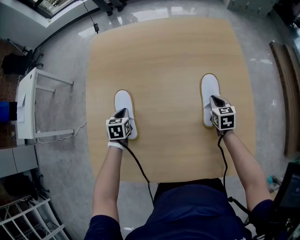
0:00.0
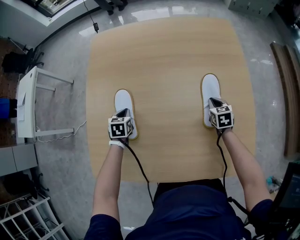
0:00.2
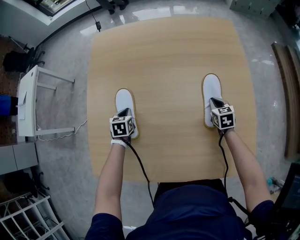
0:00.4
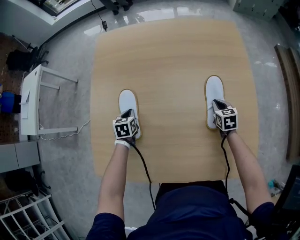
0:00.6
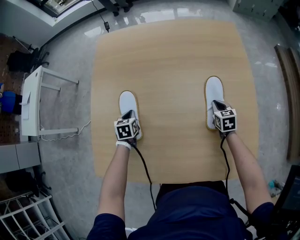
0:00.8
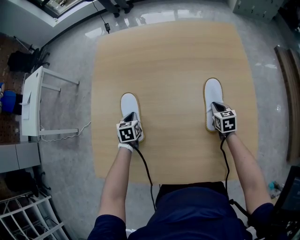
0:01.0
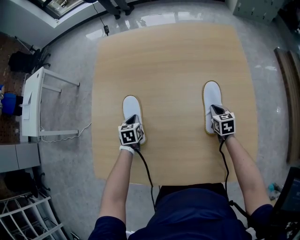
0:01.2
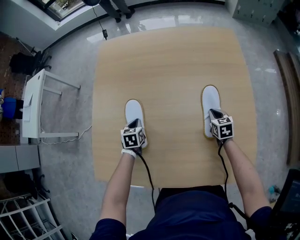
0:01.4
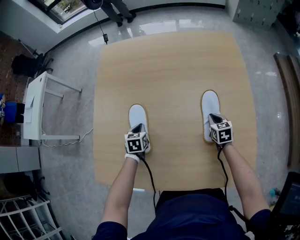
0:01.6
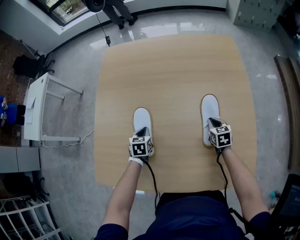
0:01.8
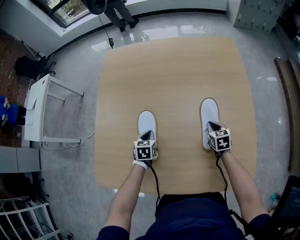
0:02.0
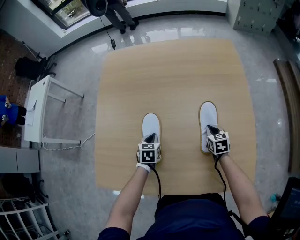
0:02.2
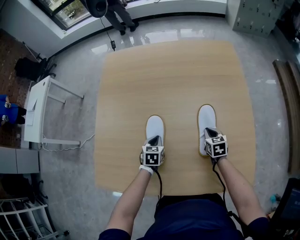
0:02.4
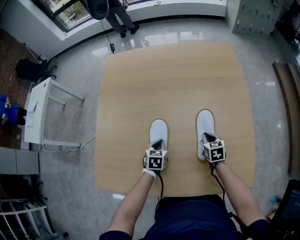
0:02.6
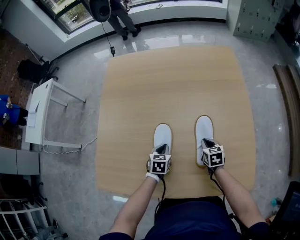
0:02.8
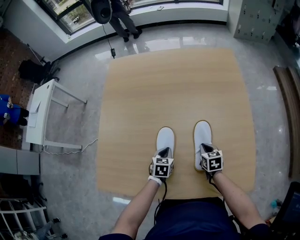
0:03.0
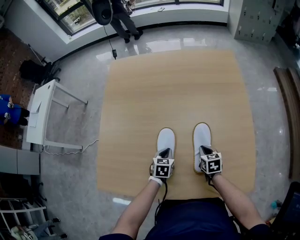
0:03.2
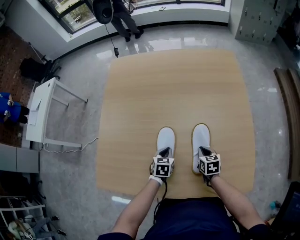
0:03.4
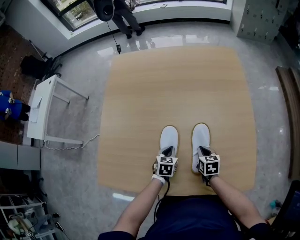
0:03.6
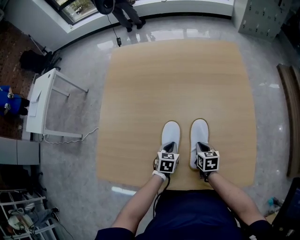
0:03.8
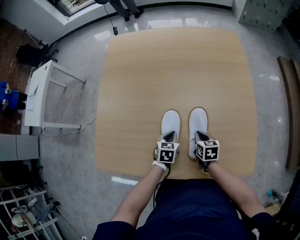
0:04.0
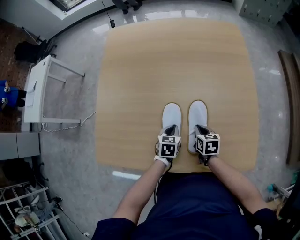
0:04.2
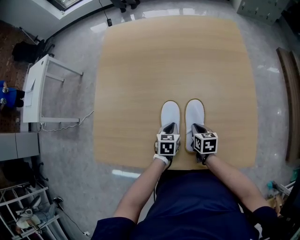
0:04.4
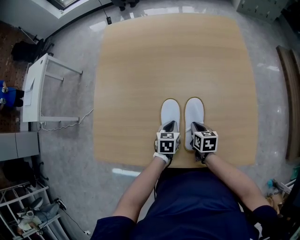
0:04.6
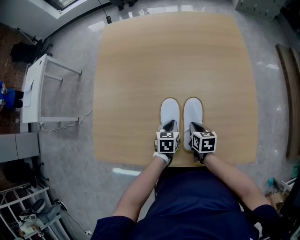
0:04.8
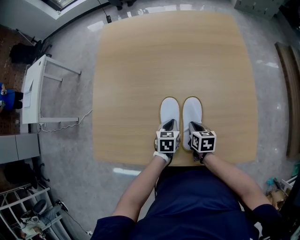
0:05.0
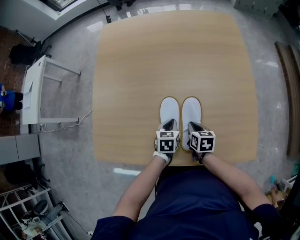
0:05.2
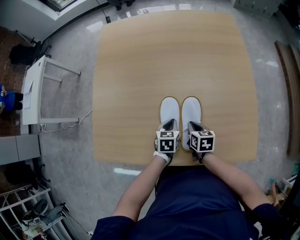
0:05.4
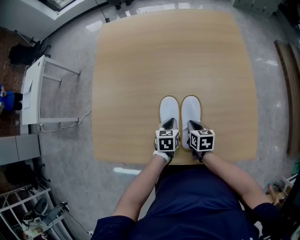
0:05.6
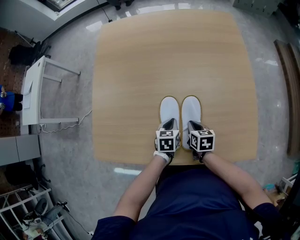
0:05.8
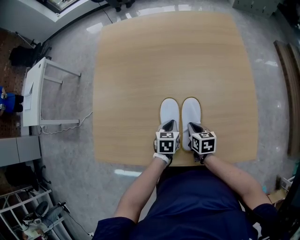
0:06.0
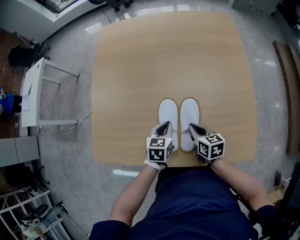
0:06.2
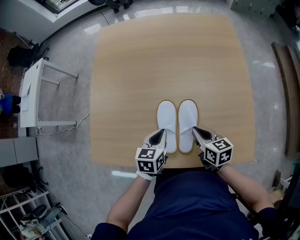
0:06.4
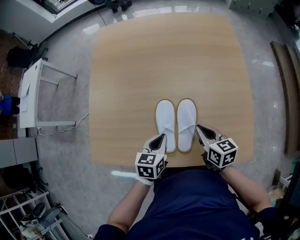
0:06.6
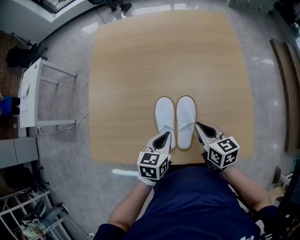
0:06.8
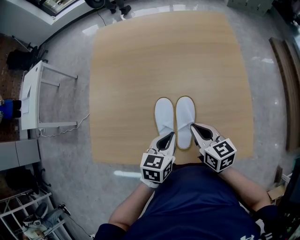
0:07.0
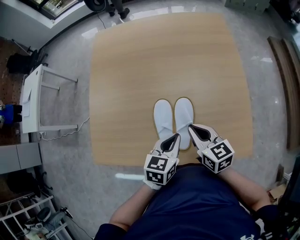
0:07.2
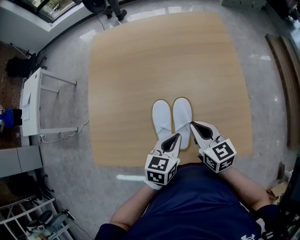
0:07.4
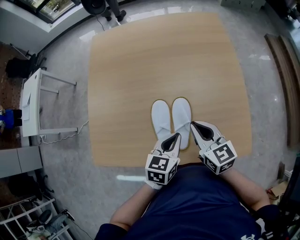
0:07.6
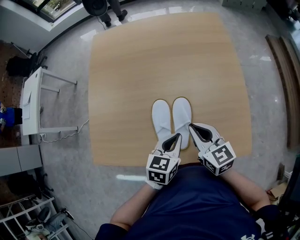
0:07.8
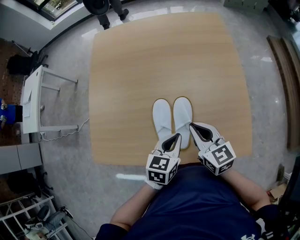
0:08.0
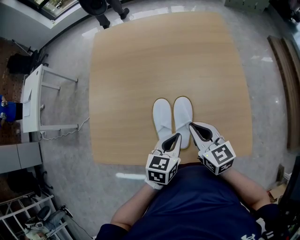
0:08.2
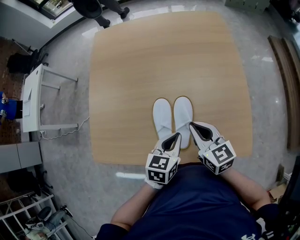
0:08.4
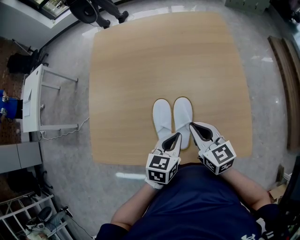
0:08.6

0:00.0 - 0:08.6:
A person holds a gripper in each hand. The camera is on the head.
0:00.0 - 0:01.4: The grippers move only a little.
0:01.4 - 0:02.8: The left gripper travels to the right and backward by about 15 cm. Meanwhile the right gripper moves backward, about 10 cm.
0:02.8 - 0:04.4: The left gripper travels backward by approximately 5 cm; the right gripper heads backward and to the left, covering some 10 cm.
0:04.4 - 0:05.8: The grippers move only a little.
0:05.8 - 0:07.2: The two grippers go approximately 15 cm upward. The right gripper turns by some 30 degrees.
0:07.2 - 0:08.6: The grippers make only small movements.

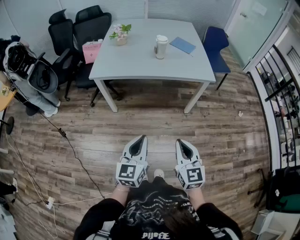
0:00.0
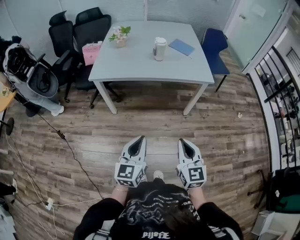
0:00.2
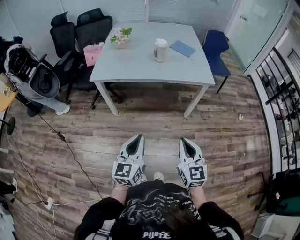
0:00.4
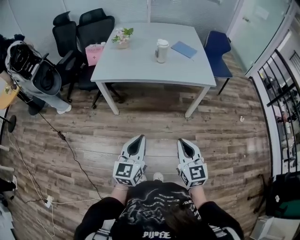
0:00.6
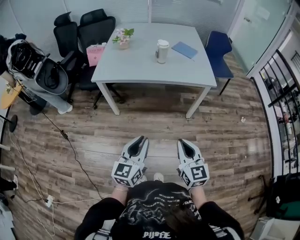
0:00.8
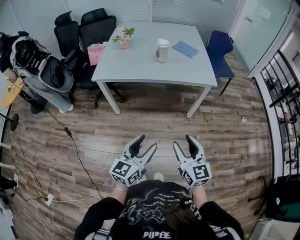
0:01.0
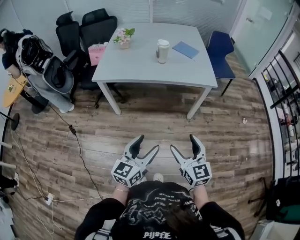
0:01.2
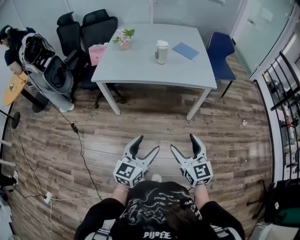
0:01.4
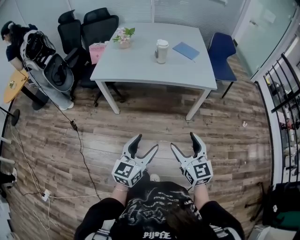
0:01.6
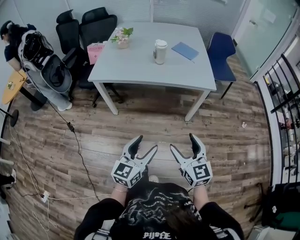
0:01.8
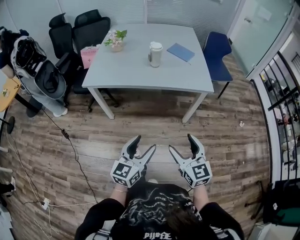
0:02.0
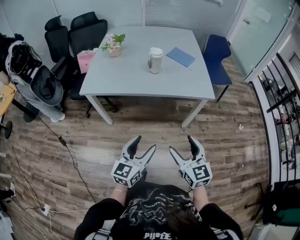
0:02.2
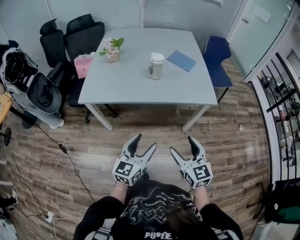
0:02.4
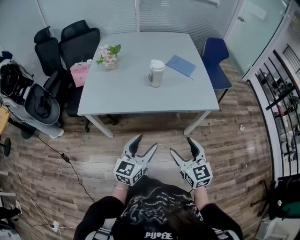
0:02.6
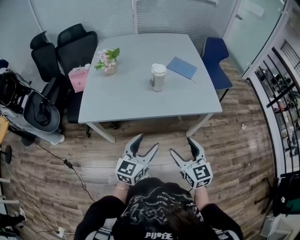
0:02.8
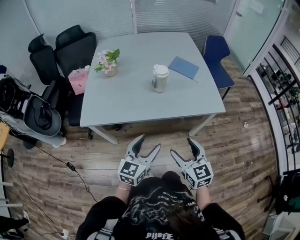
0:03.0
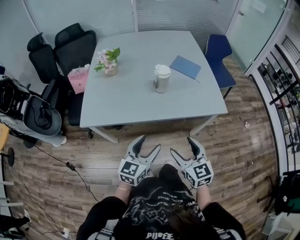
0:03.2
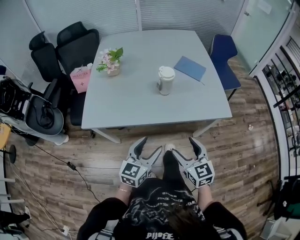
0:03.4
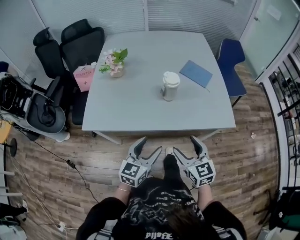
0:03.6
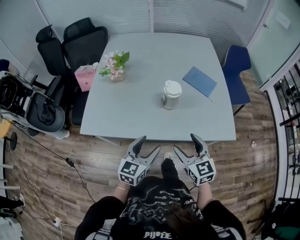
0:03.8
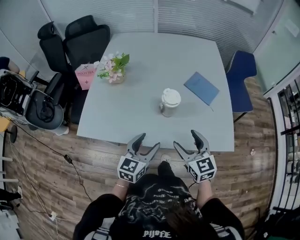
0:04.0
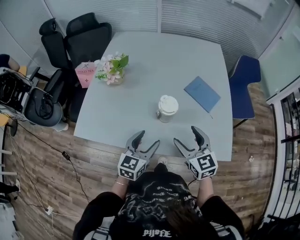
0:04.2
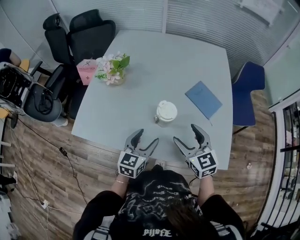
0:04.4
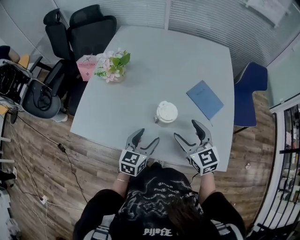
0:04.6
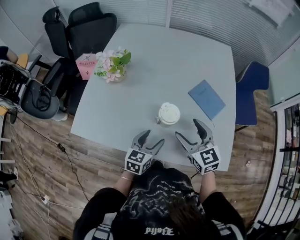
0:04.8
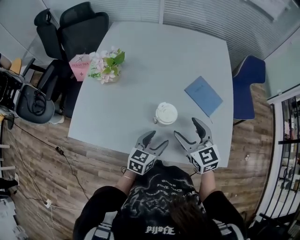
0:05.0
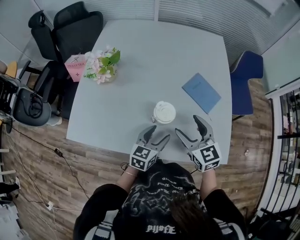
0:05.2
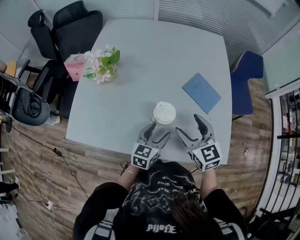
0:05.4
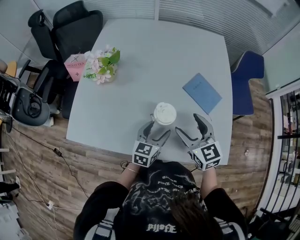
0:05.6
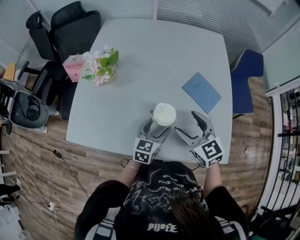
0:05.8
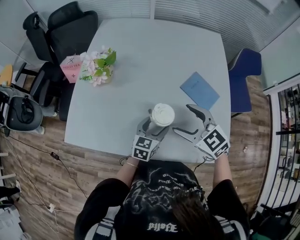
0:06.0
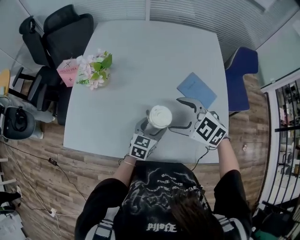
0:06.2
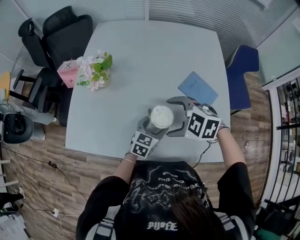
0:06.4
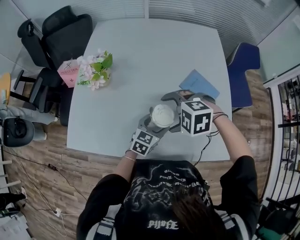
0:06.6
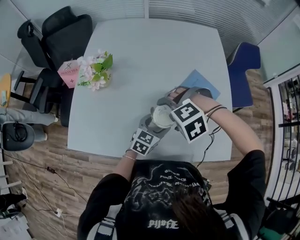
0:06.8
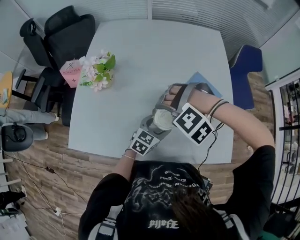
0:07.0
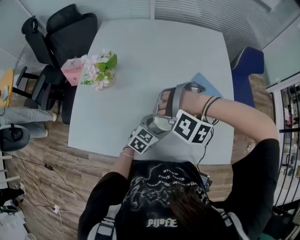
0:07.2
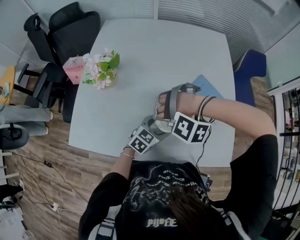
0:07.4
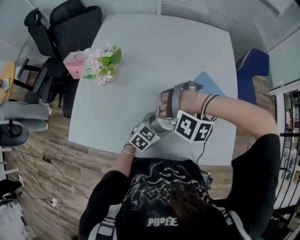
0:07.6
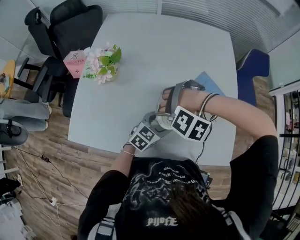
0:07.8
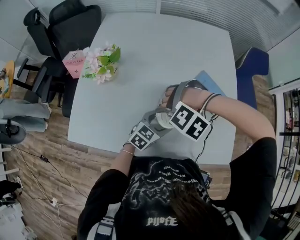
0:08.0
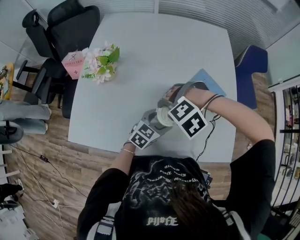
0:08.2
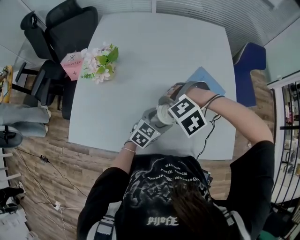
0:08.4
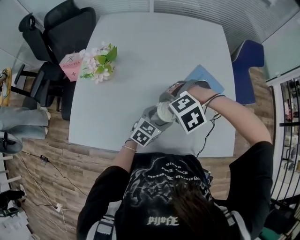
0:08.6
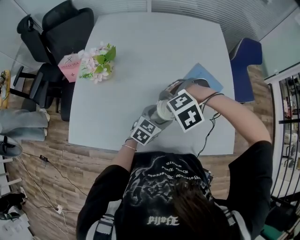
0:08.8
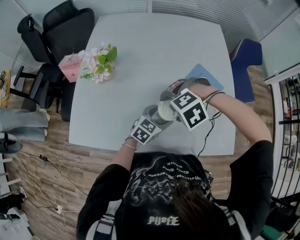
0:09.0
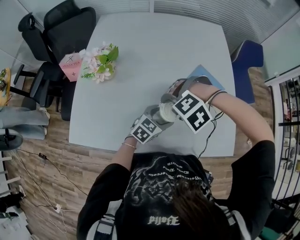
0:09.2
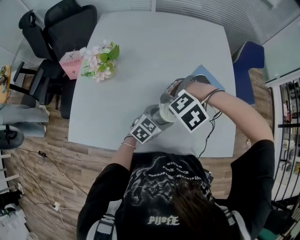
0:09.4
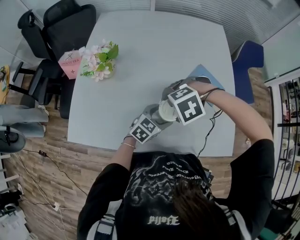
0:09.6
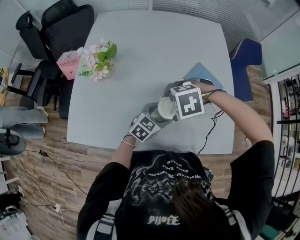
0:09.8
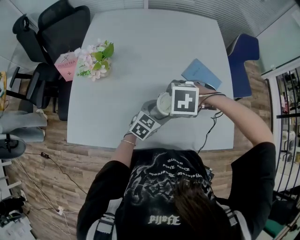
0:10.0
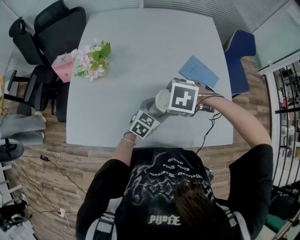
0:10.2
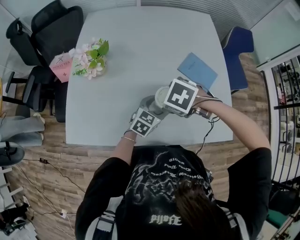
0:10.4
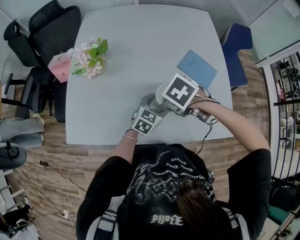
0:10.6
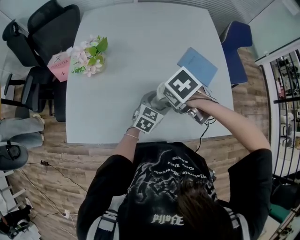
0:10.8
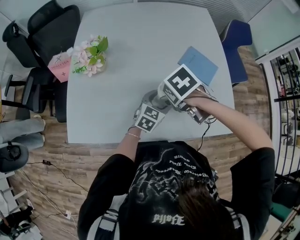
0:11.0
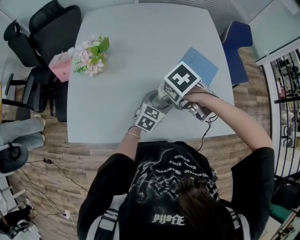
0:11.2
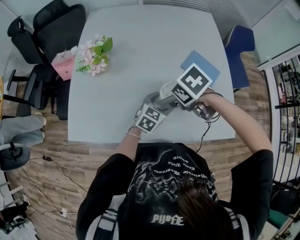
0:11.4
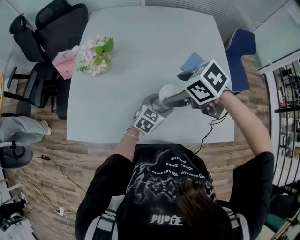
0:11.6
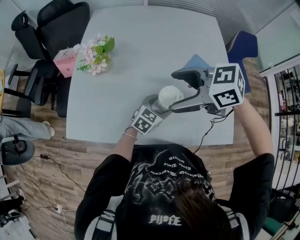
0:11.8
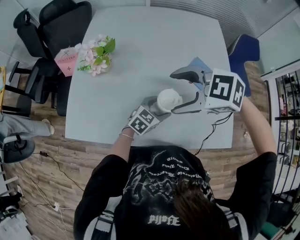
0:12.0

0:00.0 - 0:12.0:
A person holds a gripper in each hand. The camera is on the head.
0:00.0 - 0:01.6: Both grippers travel together to the right, approximately 10 cm. The right gripper opens its fingers; the left gripper opens up.
0:01.6 - 0:03.0: The left gripper moves forward, some 30 cm. Meanwhile the right gripper travels forward and to the left by some 30 cm.
0:03.0 - 0:04.4: The two grippers go approximately 35 cm forward. The right gripper rotates roughly 20 degrees. Meanwhile the left gripper changes its angle by some 20 degrees.
0:04.4 - 0:06.0: The left gripper goes some 10 cm forward, downward and to the right; the right gripper moves forward, about 5 cm, and turns by about 20 degrees.
0:06.0 - 0:07.6: The left gripper changes its angle by about 20 degrees; the right gripper travels downward by approximately 5 cm, and twists about 100 degrees counterclockwise, seen from behind.
0:07.6 - 0:09.0: The right gripper rotates around the line of its fingers by roughly 50 degrees, clockwise from behind.
0:09.0 - 0:10.4: The right gripper rolls clockwise, seen from behind, by approximately 60 degrees.
0:10.4 - 0:12.0: The right gripper shifts roughly 10 cm upward, and points its fingers some 30 degrees further upward.

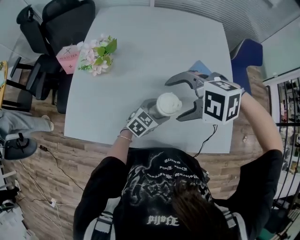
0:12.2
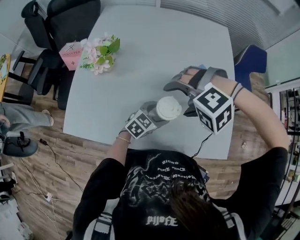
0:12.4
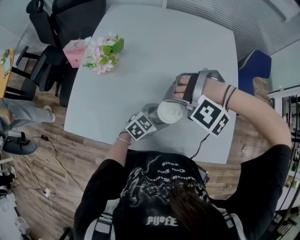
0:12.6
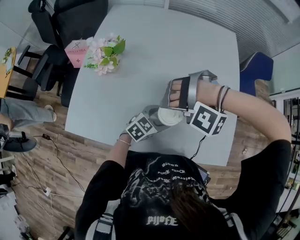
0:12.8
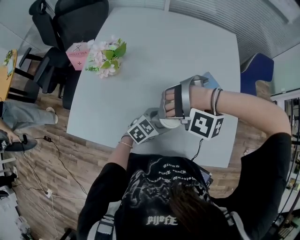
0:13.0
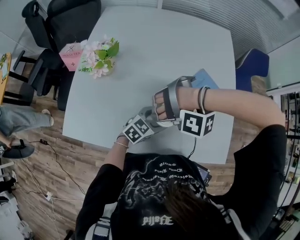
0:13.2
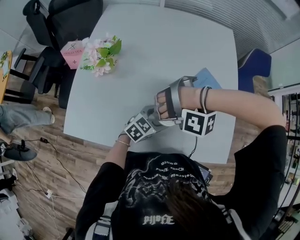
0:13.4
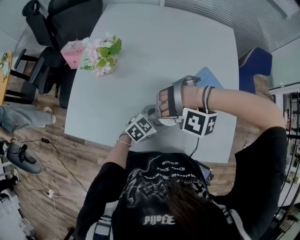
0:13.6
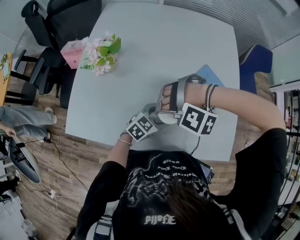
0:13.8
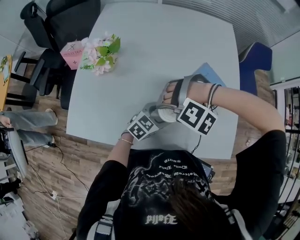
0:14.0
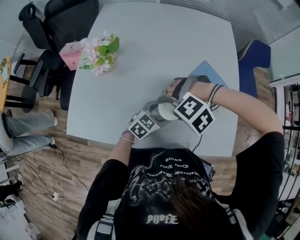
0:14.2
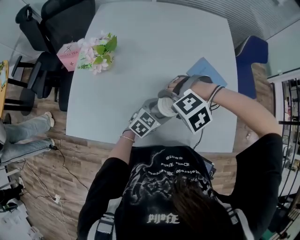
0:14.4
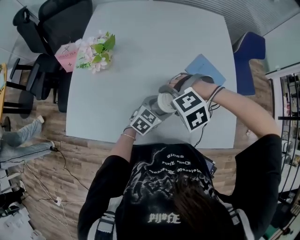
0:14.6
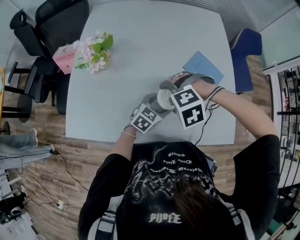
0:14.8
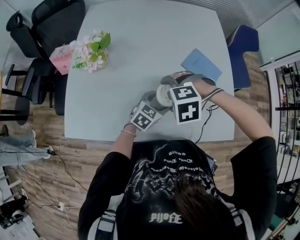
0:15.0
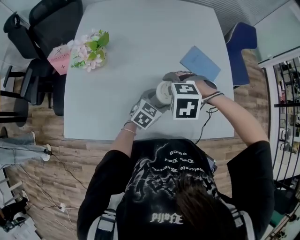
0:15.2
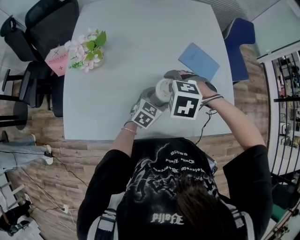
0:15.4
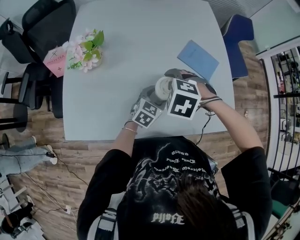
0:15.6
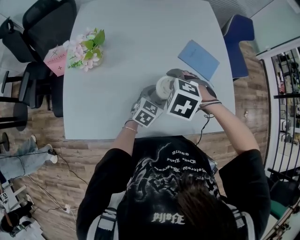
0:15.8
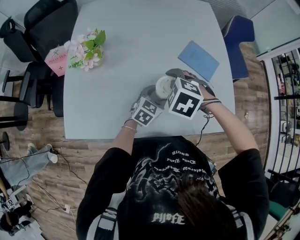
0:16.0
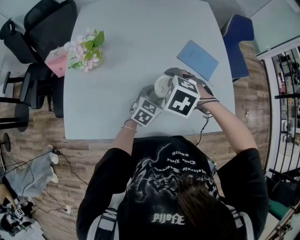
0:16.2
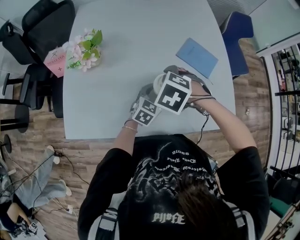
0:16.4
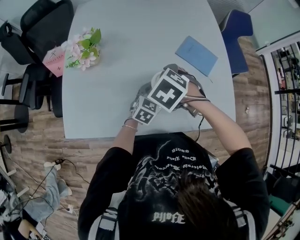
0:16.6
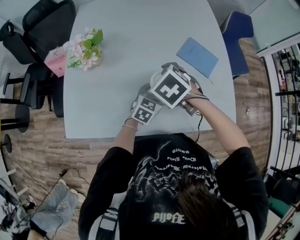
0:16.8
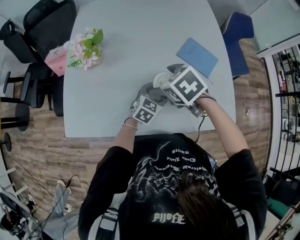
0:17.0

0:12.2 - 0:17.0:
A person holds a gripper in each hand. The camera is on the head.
0:12.2 - 0:13.8: The right gripper moves downward, roughly 10 cm, and twists approximately 60 degrees counterclockwise, seen from behind.
0:13.8 - 0:15.4: The right gripper rotates around the line of its fingers by about 90 degrees, clockwise from behind.
0:15.4 - 0:17.0: The right gripper rotates approximately 40 degrees.
